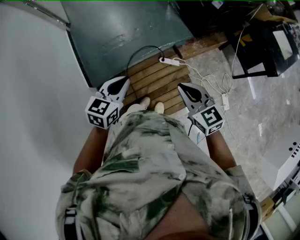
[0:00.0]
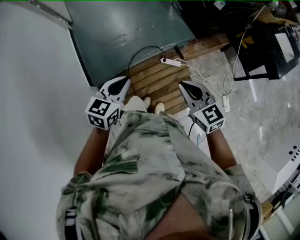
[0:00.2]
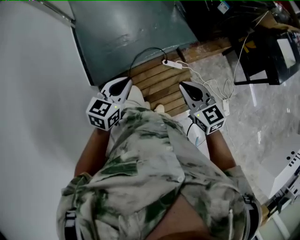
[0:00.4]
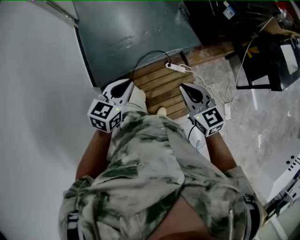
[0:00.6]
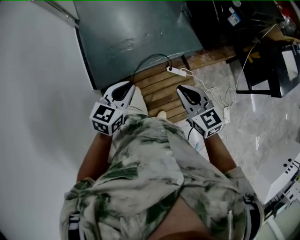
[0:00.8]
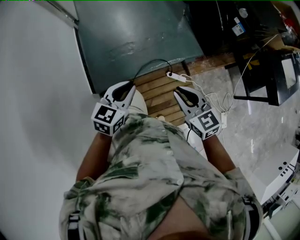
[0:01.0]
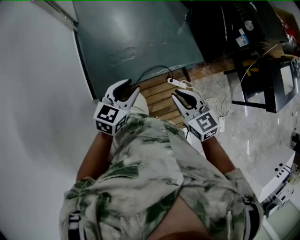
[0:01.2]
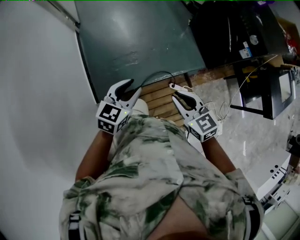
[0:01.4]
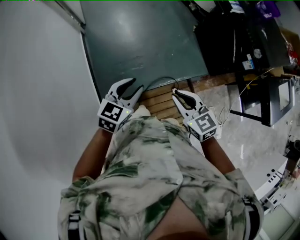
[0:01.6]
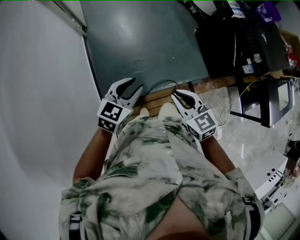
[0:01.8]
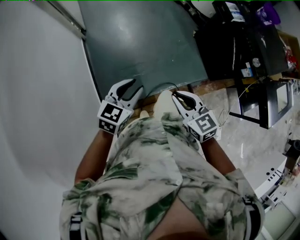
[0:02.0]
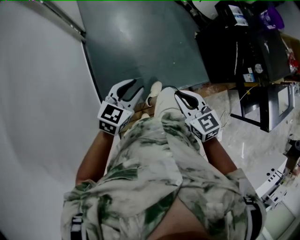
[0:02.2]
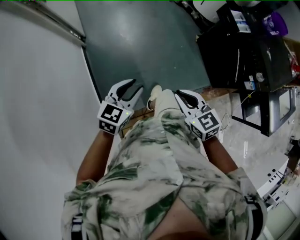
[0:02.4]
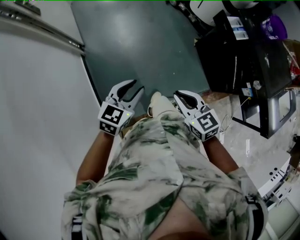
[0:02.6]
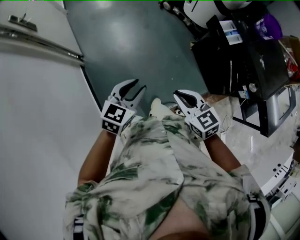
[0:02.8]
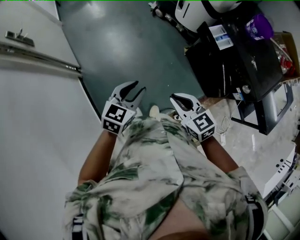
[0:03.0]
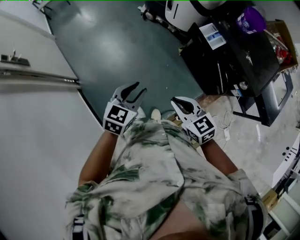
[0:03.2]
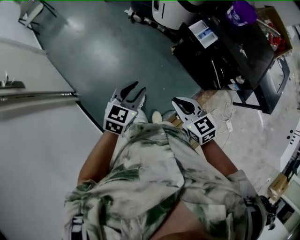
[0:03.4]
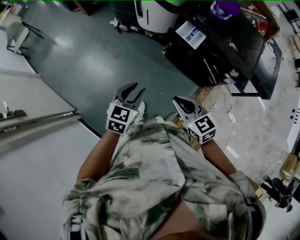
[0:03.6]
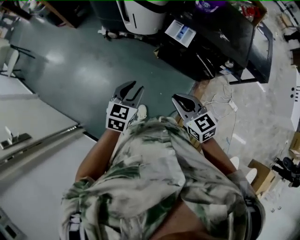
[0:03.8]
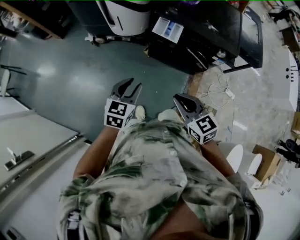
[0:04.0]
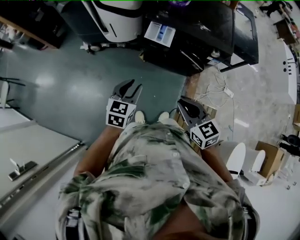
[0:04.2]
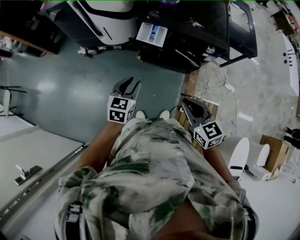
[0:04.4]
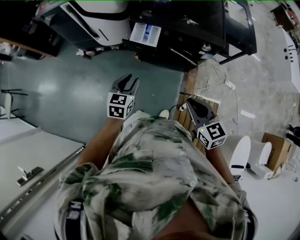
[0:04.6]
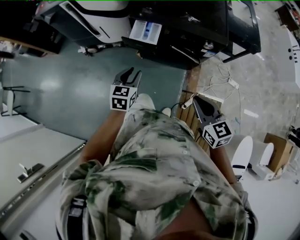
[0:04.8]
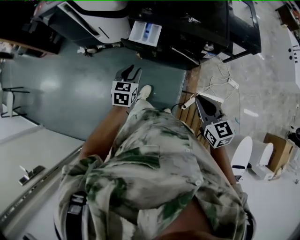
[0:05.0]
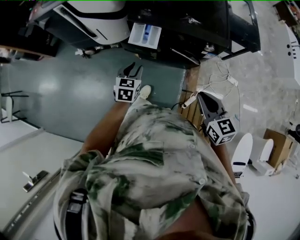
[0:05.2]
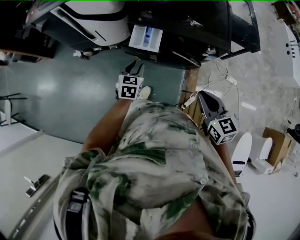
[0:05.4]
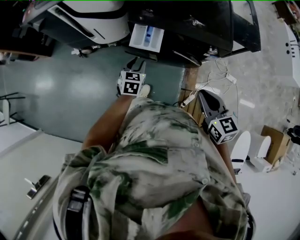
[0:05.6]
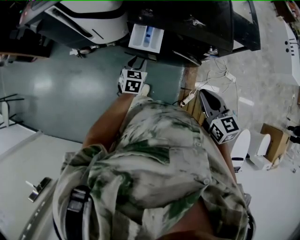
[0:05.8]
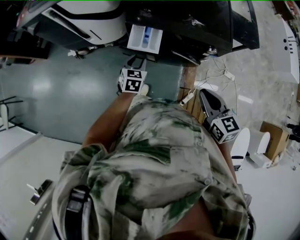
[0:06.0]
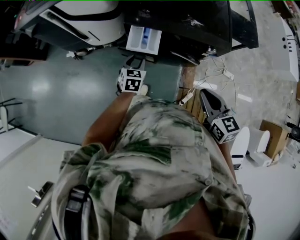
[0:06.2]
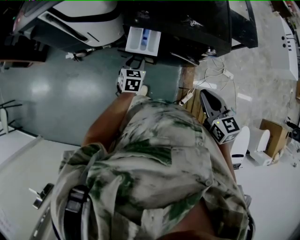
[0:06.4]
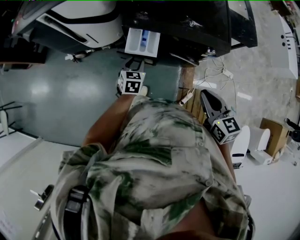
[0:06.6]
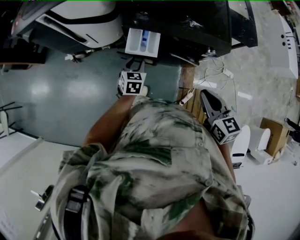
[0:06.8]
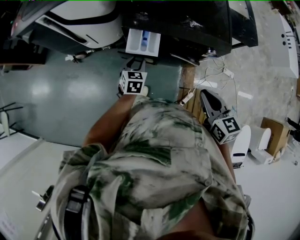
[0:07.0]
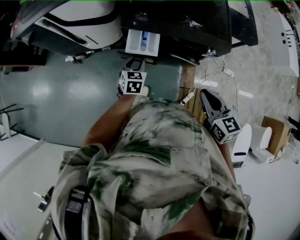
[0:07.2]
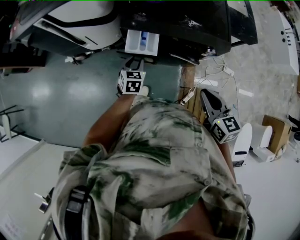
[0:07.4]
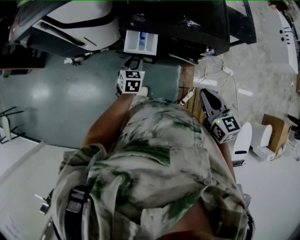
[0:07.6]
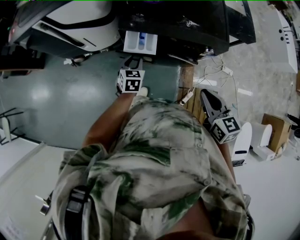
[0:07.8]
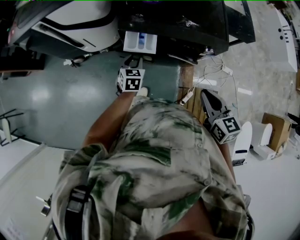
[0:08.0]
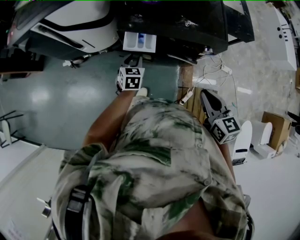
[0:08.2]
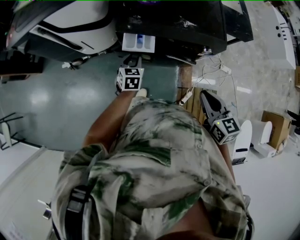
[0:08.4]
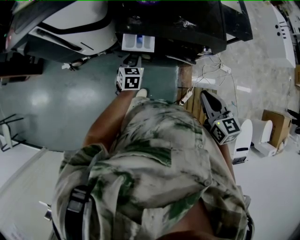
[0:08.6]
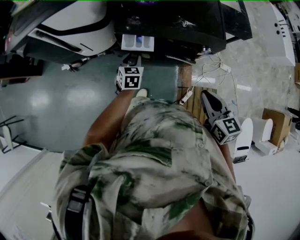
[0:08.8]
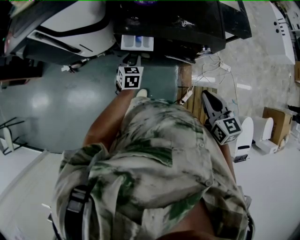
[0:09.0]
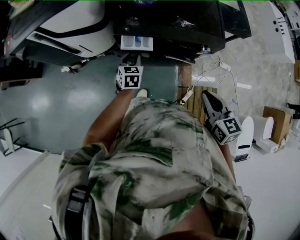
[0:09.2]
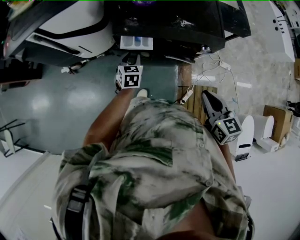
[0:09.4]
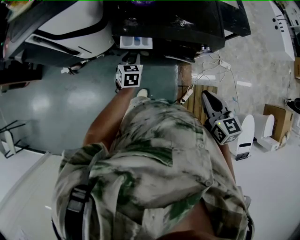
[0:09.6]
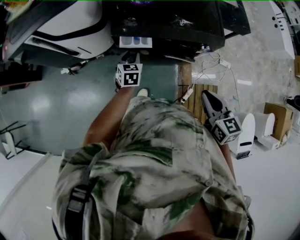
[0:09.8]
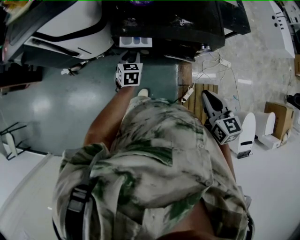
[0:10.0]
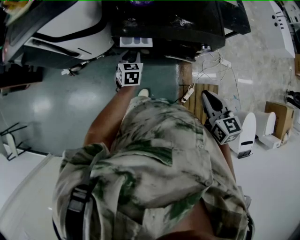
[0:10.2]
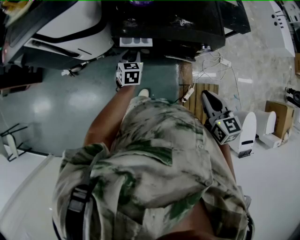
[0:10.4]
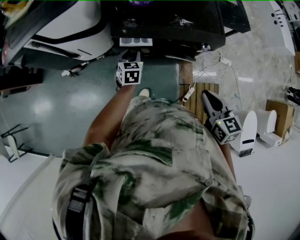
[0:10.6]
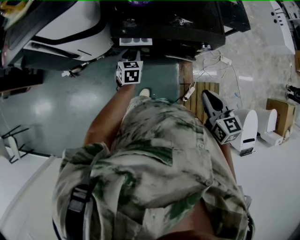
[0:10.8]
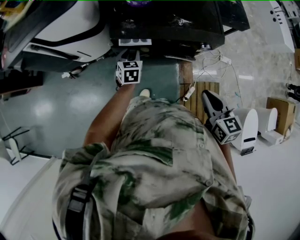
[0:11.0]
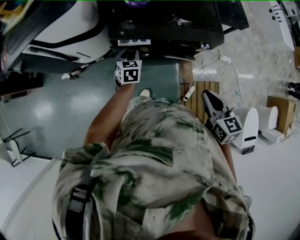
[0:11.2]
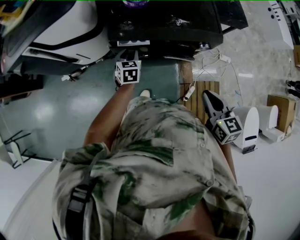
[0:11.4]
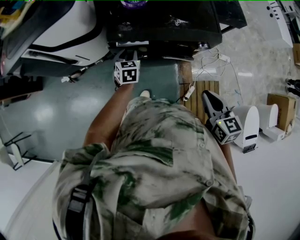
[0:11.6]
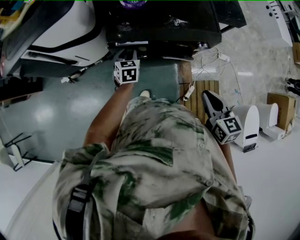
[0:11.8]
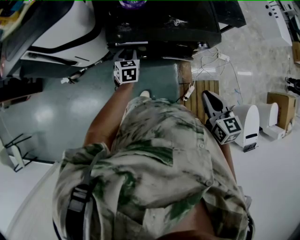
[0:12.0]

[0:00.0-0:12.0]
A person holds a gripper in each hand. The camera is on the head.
0:00.0 to 0:01.6: The grippers both shift forward and to the left by approximately 40 cm. The left gripper opens its fingers.
0:01.6 to 0:03.0: Both grippers move forward, roughly 40 cm.
0:03.0 to 0:04.4: The left gripper changes place by approximately 30 cm, and rotates about 40 degrees, while the right gripper shifts by some 20 cm, and changes its angle by roughly 60 degrees.
0:04.4 to 0:06.0: The left gripper is displaced forward and downward by approximately 25 cm, while the right gripper heads forward and to the right, covering approximately 15 cm.
0:06.0 to 0:07.6: The grippers make only small movements.
0:07.6 to 0:09.0: The grippers move only a little.
0:09.0 to 0:10.4: The grippers move only a little.
0:10.4 to 0:12.0: The grippers stay close to where they were, moving slightly.

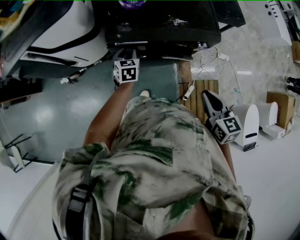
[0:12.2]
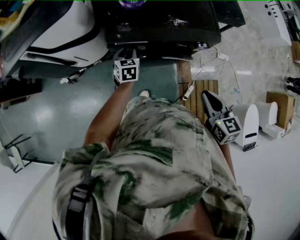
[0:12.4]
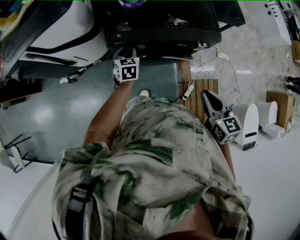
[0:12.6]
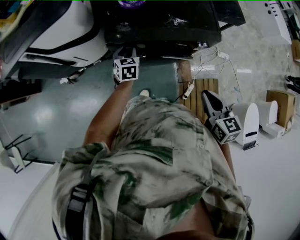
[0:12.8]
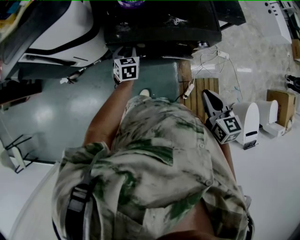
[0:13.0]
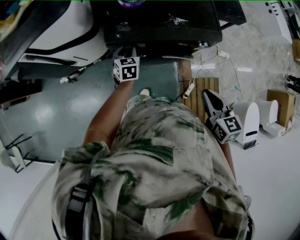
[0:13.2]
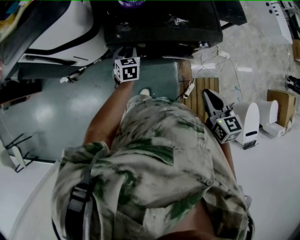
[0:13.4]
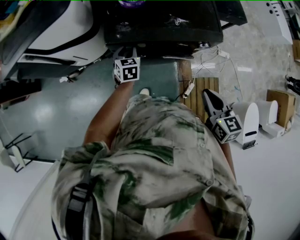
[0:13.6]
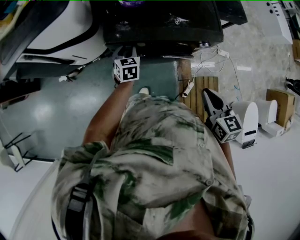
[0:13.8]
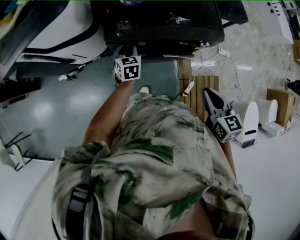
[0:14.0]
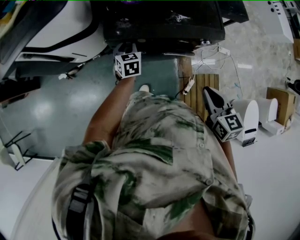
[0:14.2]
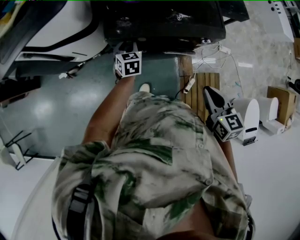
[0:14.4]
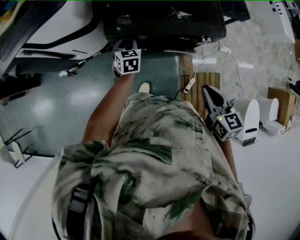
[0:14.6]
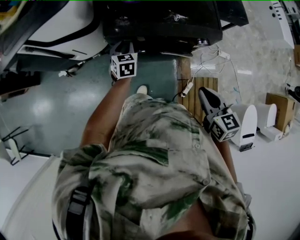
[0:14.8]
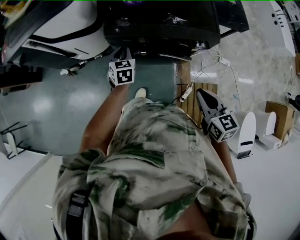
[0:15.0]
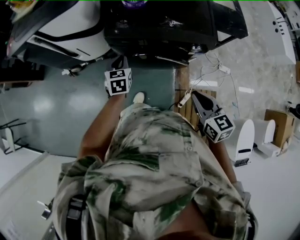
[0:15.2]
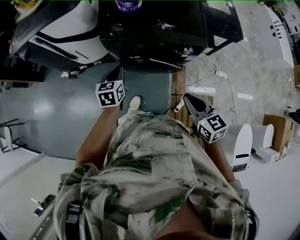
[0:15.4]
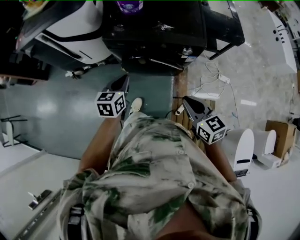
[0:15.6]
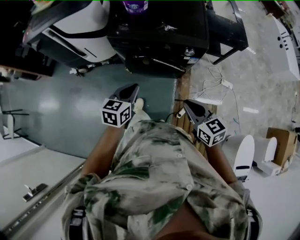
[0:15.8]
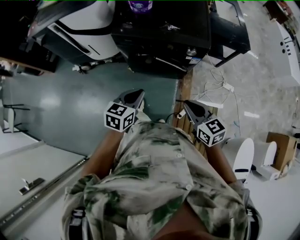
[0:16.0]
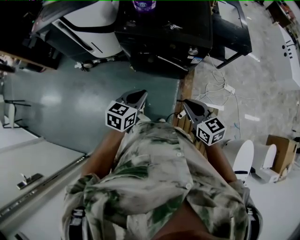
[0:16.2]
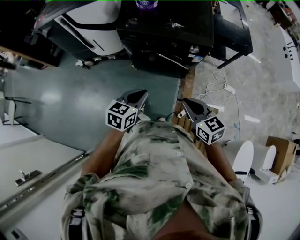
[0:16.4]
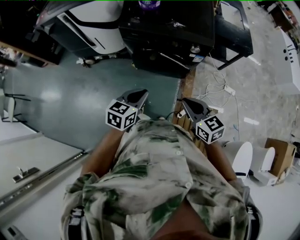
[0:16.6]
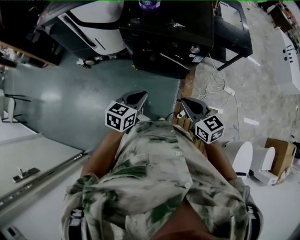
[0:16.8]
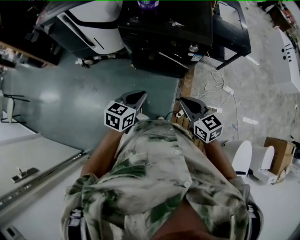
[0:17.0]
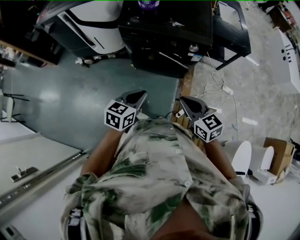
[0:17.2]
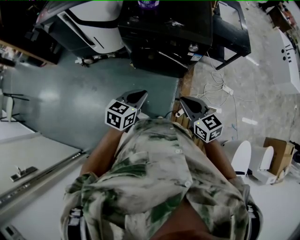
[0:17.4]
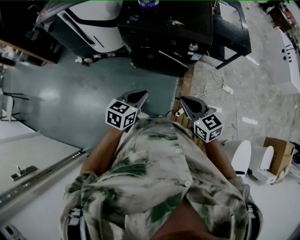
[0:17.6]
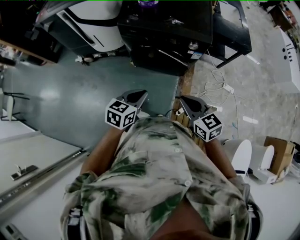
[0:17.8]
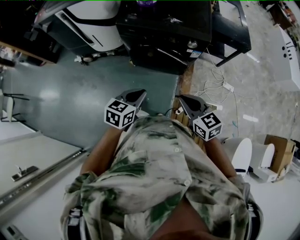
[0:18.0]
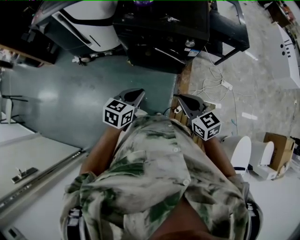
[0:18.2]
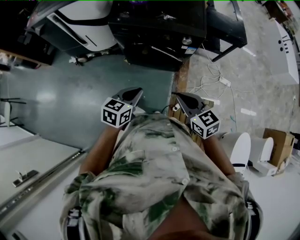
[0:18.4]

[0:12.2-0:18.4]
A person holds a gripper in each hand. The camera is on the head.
0:12.2 to 0:13.8: The grippers stay close to where they were, moving slightly.
0:13.8 to 0:15.4: The right gripper goes approximately 10 cm backward; the left gripper moves backward and upward, approximately 20 cm, and closes.
0:15.4 to 0:16.8: The left gripper shifts roughly 25 cm backward. Meanwhile the right gripper goes approximately 10 cm backward.
0:16.8 to 0:18.4: The grippers make only small movements.

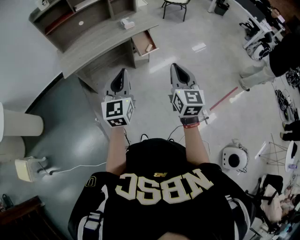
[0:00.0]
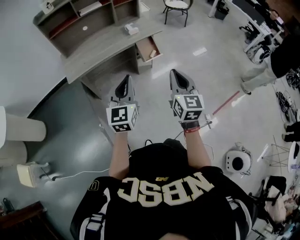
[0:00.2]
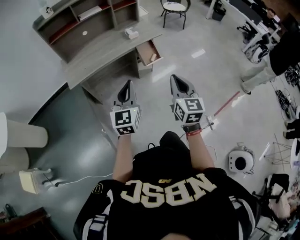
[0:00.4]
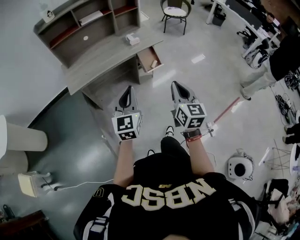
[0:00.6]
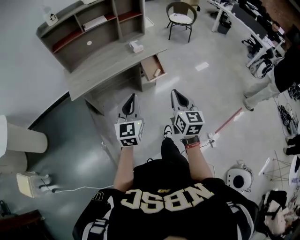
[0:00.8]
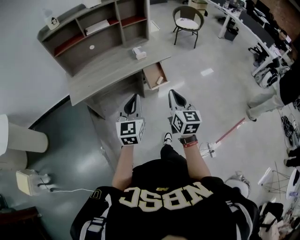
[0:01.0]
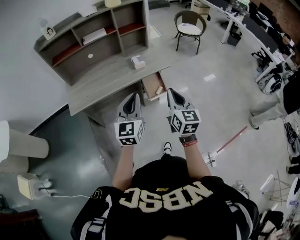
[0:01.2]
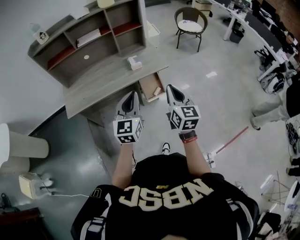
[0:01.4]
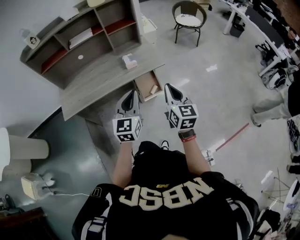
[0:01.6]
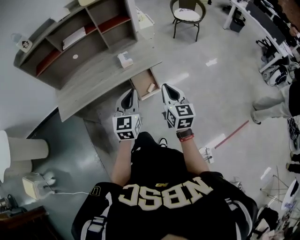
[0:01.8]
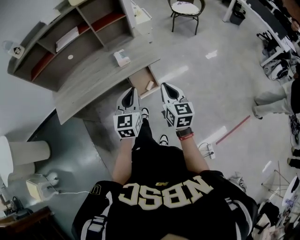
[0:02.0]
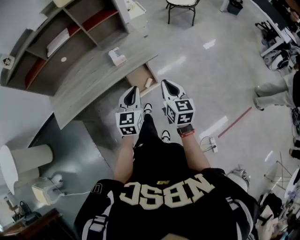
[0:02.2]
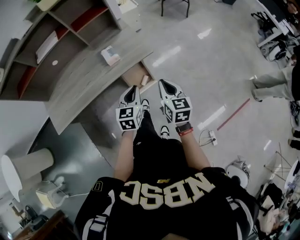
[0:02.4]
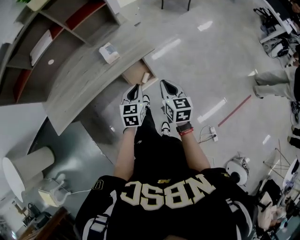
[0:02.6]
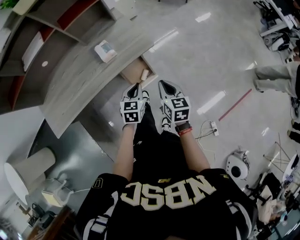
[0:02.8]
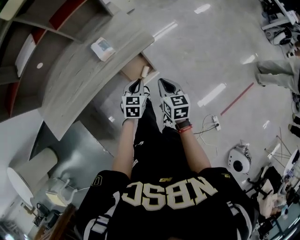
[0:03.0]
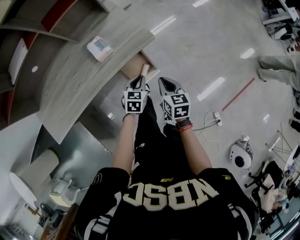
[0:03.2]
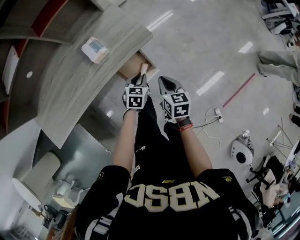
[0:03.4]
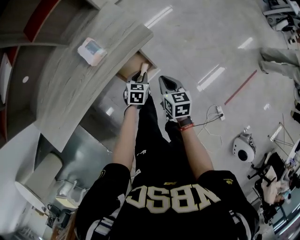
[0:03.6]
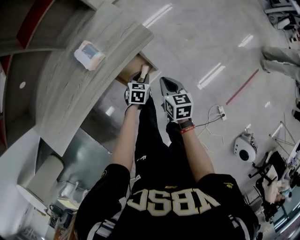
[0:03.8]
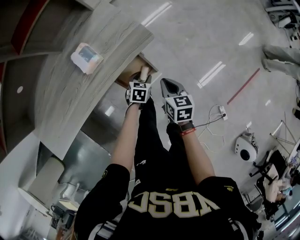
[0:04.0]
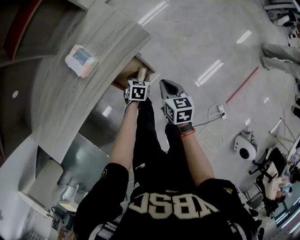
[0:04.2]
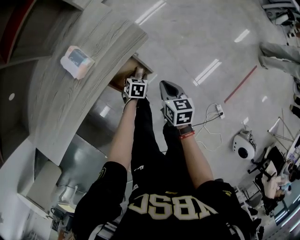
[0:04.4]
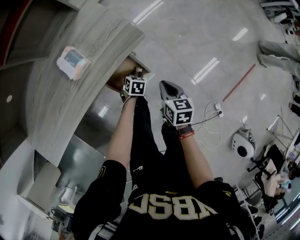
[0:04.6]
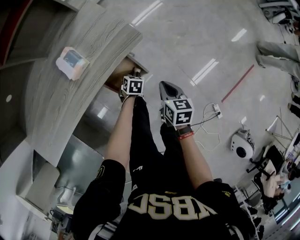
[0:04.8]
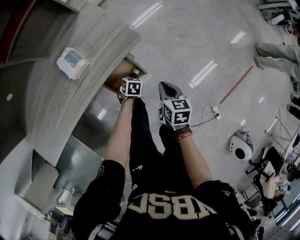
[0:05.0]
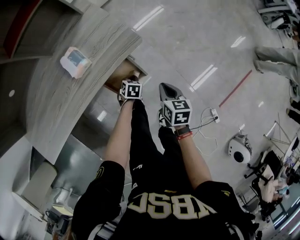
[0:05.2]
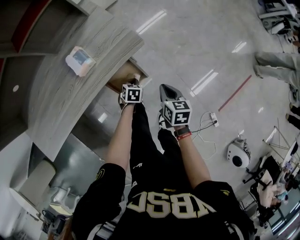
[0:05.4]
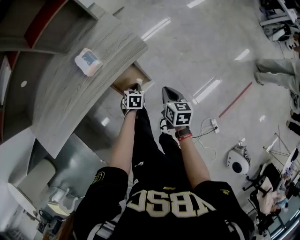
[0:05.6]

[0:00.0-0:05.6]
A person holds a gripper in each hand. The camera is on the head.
0:00.0 to 0:01.4: The grippers both shift forward by roughly 25 cm.
0:01.4 to 0:02.8: The two grippers go about 30 cm downward and forward. The right gripper changes its angle by roughly 30 degrees; the left gripper tips its fingers downward by approximately 40 degrees.
0:02.8 to 0:04.2: The left gripper heads downward, covering roughly 30 cm, changes its angle by about 30 degrees, and opens up, while the right gripper shifts about 20 cm downward.
0:04.2 to 0:05.6: The left gripper heads upward, covering roughly 5 cm, and closes. The right gripper changes place by some 5 cm.
